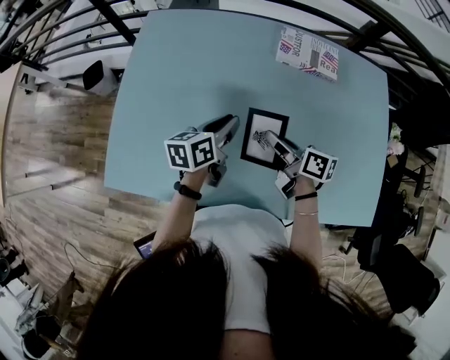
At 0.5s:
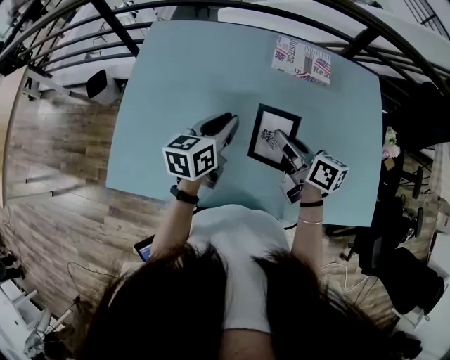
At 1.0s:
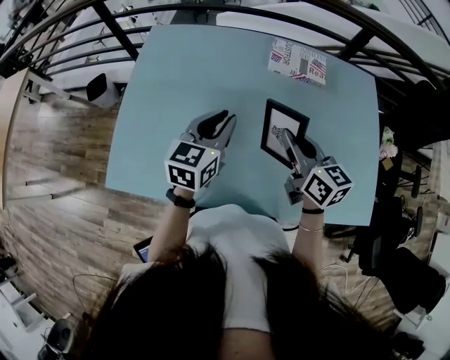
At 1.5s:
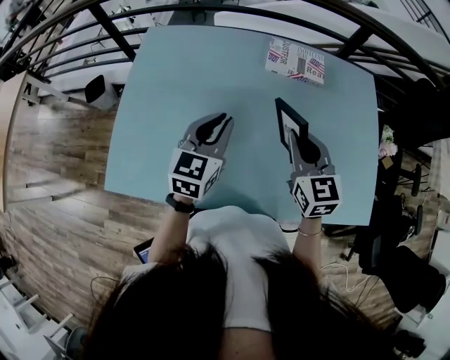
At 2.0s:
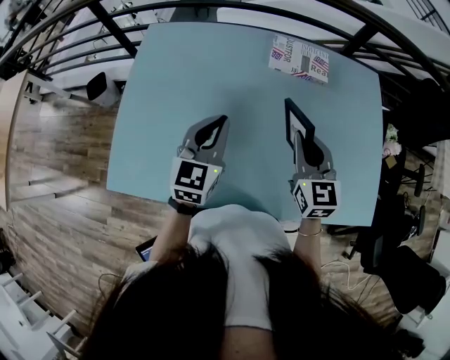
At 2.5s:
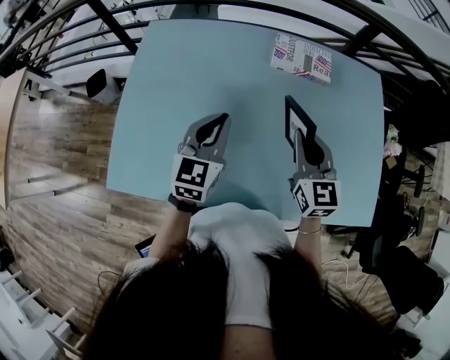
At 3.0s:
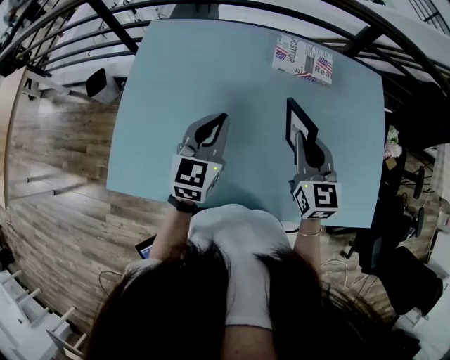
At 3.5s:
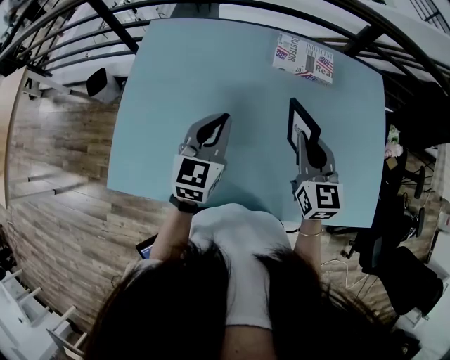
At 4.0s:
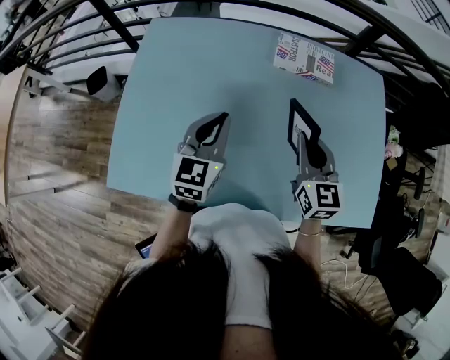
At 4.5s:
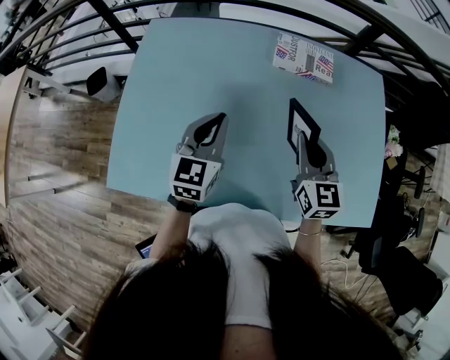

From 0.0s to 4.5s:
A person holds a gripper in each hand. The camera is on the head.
From 0.0s to 2.0s: The right gripper travels upward and to the right by about 15 cm, and rotates around the line of its fingers by some 60 degrees, counterclockwise from behind. The left gripper heads upward, covering roughly 10 cm, and rolls clockwise, seen from behind, by approximately 40 degrees.
From 2.0s to 4.5s: The grippers make only small movements.

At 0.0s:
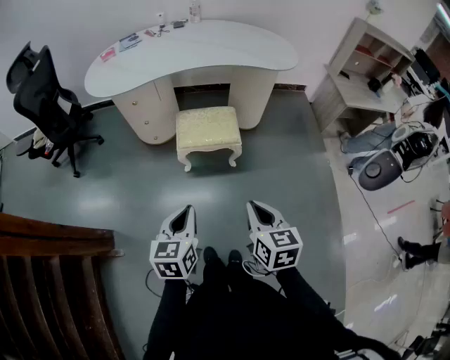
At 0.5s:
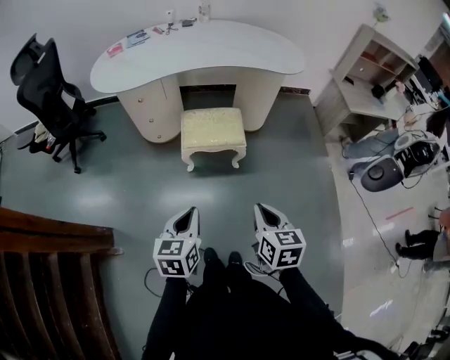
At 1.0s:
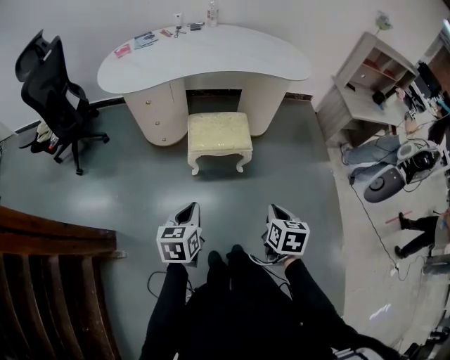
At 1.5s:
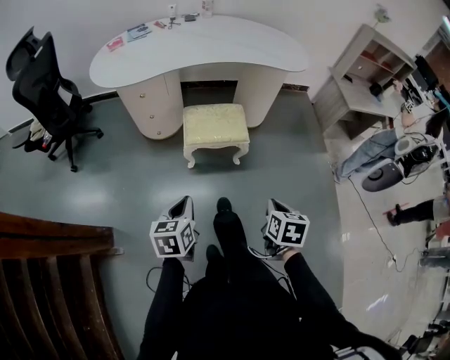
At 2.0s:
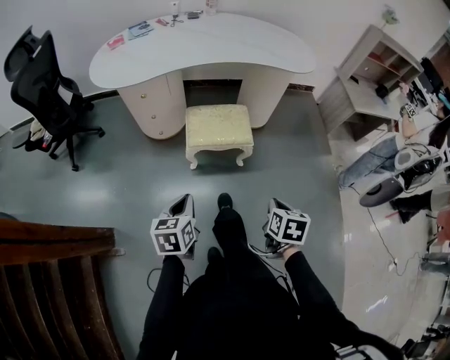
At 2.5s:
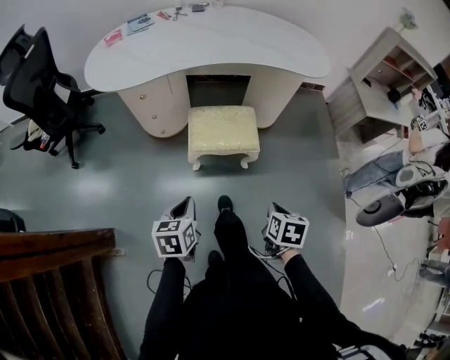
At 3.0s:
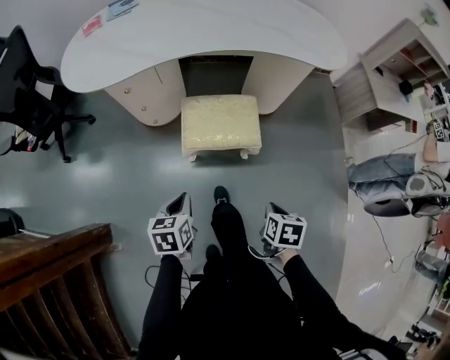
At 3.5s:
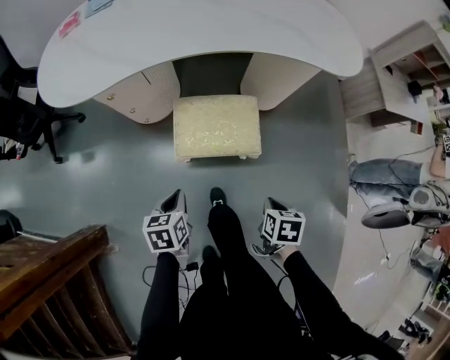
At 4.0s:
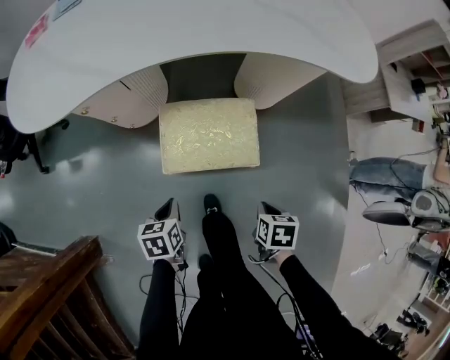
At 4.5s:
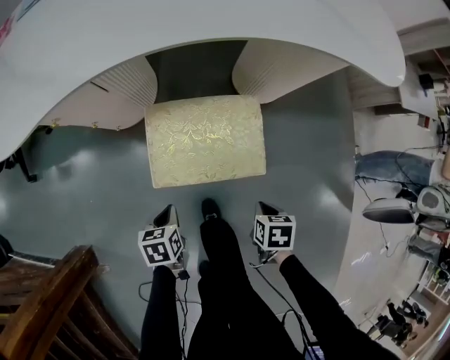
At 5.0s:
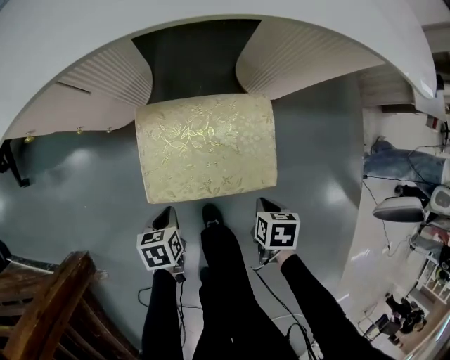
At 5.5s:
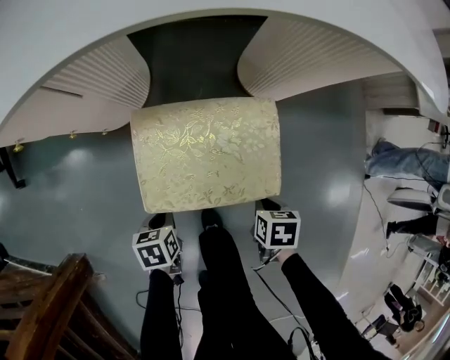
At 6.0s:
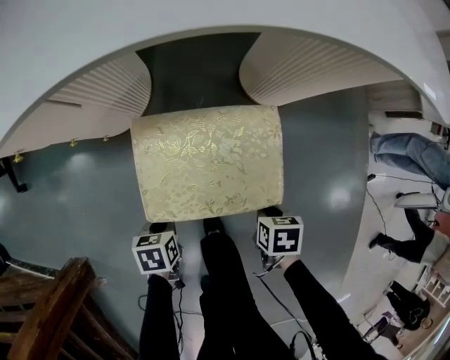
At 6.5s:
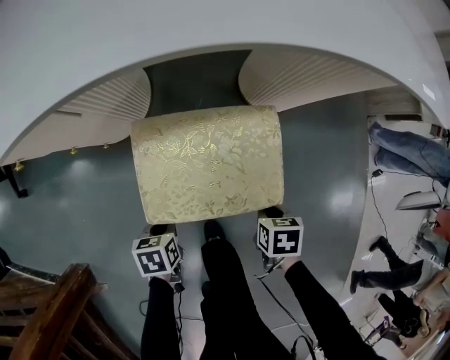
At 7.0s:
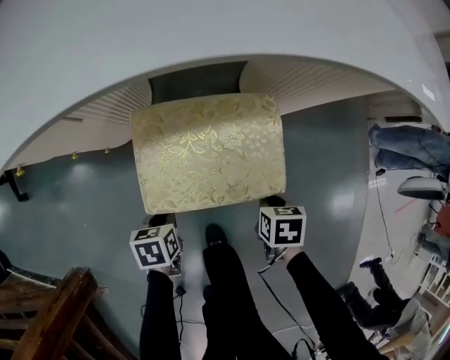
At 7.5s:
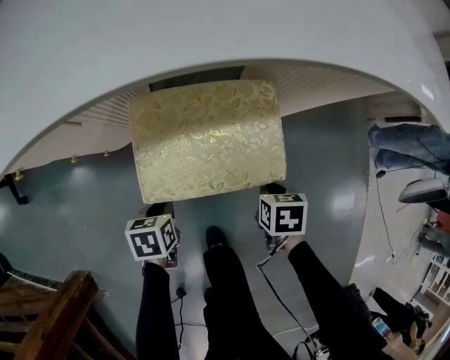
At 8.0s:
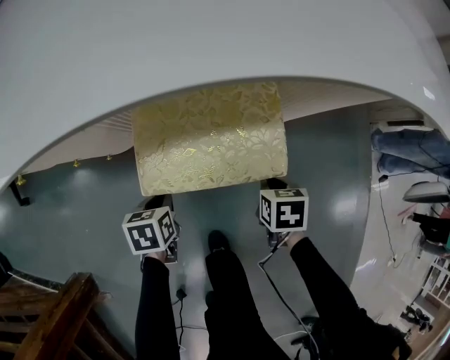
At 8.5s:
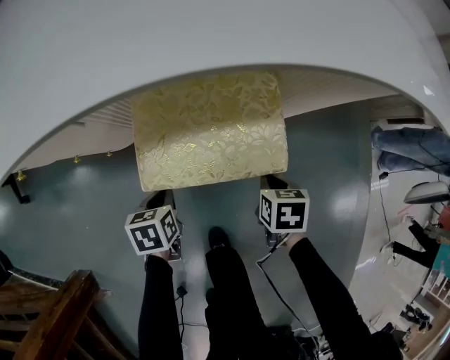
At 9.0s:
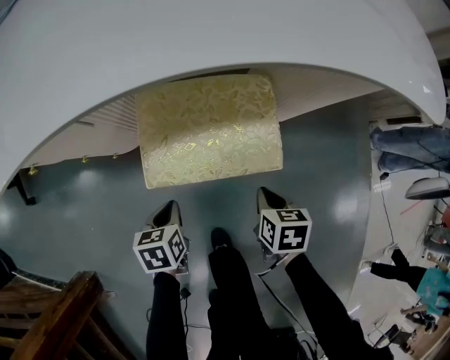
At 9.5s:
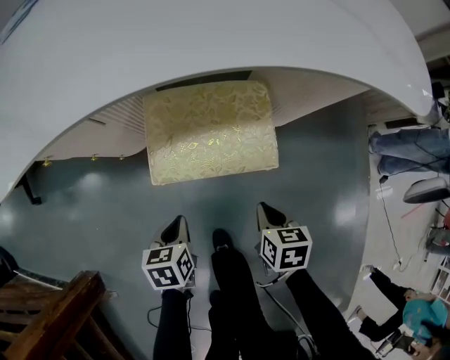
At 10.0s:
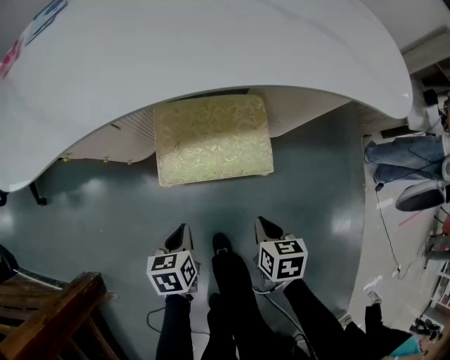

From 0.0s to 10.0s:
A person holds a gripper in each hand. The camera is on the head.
From 0.0s to 2.0s: The left gripper travels to the left, downward and forward by some 10 cm. The right gripper moves downward and forward, roughly 10 cm, and swivels about 30 degrees.
From 2.0s to 4.0s: Both grippers travel together forward and downward, some 30 cm. The right gripper swivels some 20 degrees. The left gripper turns by some 20 degrees.
From 4.0s to 6.0s: The two grippers go roughly 15 cm downward.
From 6.0s to 8.0s: The right gripper shifts by about 15 cm. The left gripper moves about 15 cm.
From 8.0s to 10.0s: The left gripper travels upward and backward by roughly 15 cm, while the right gripper goes roughly 15 cm backward and upward.

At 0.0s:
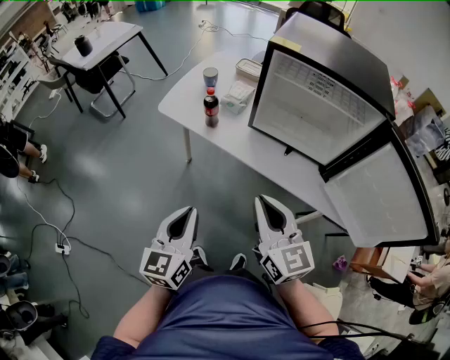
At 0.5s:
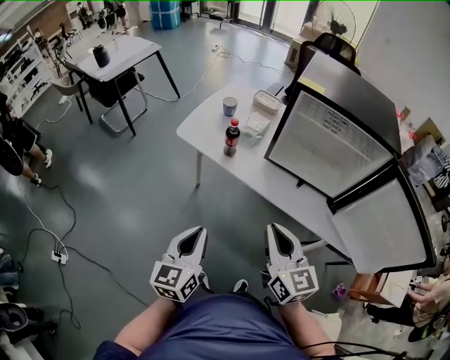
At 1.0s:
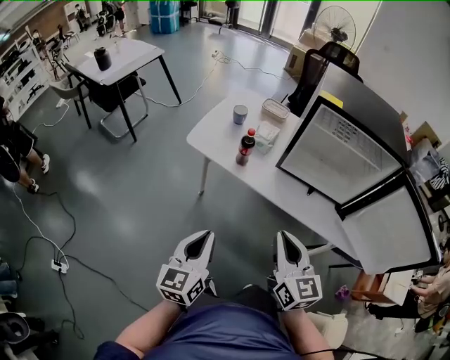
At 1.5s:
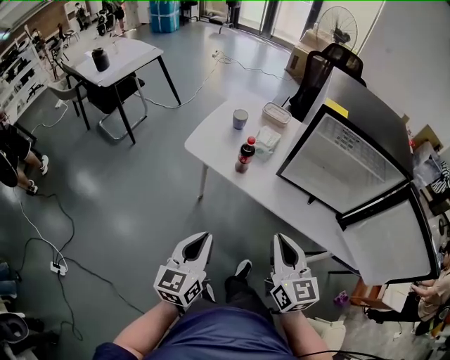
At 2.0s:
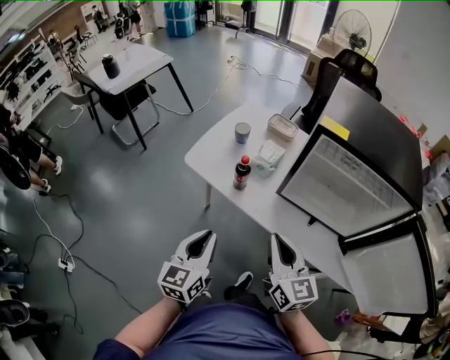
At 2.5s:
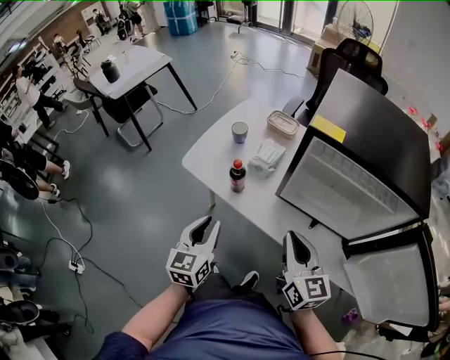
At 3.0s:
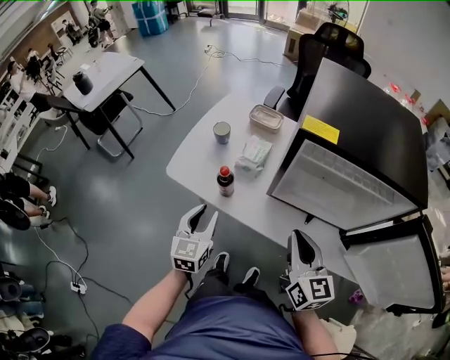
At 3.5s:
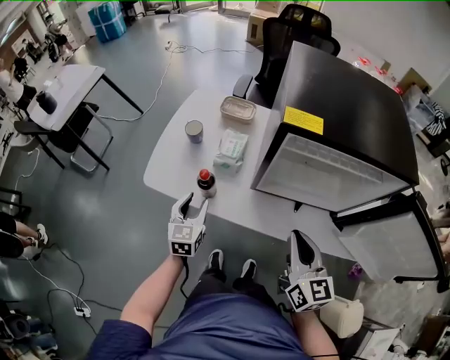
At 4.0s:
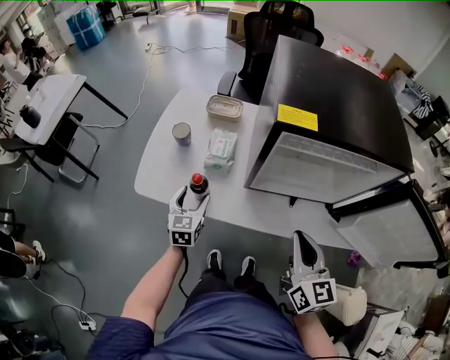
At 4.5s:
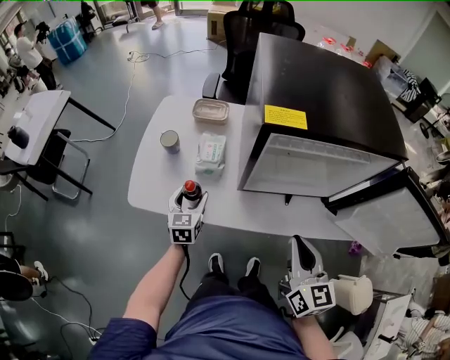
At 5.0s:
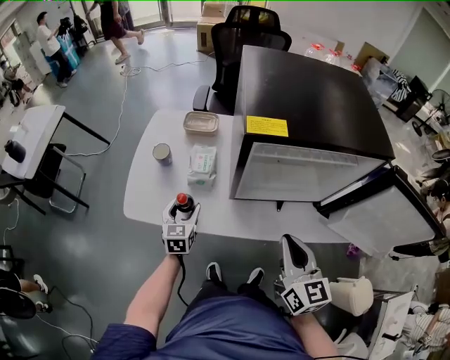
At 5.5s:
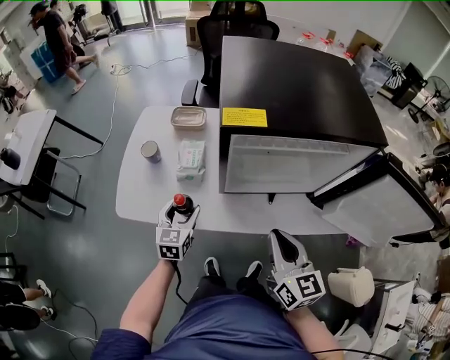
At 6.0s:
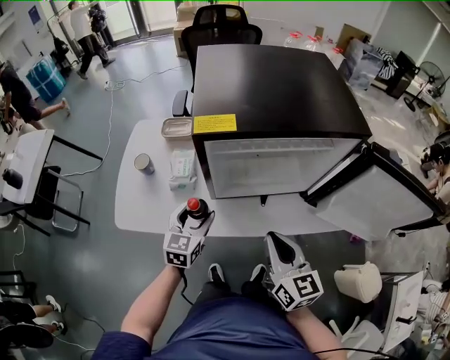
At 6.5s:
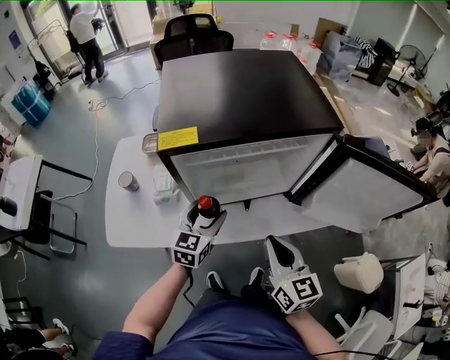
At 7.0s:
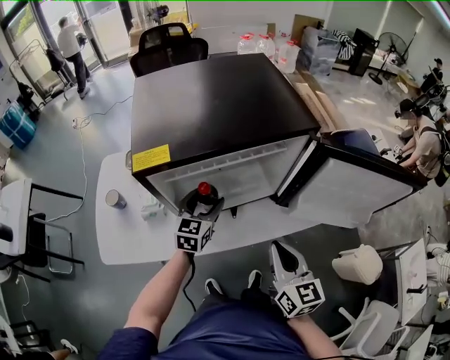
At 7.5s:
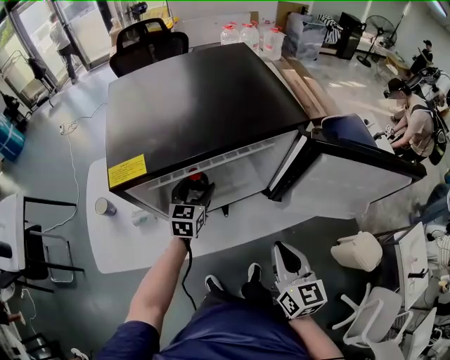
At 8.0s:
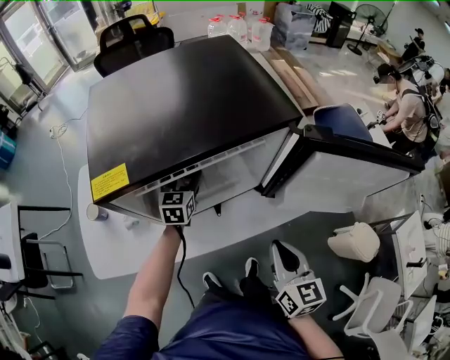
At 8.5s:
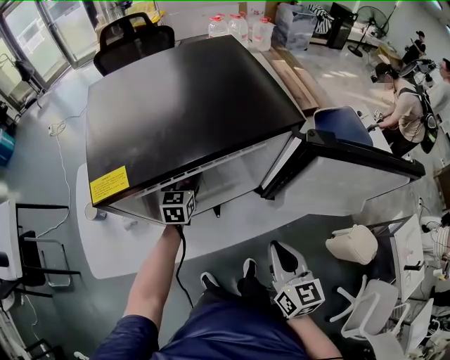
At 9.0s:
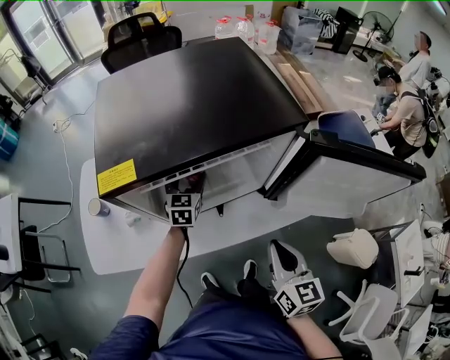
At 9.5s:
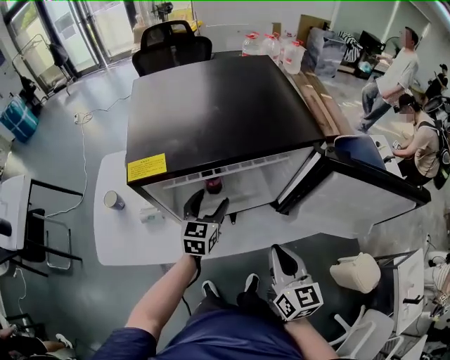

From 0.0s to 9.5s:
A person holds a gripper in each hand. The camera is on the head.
From 0.0s to 2.0s: The grippers both shift forward by about 15 cm.
From 2.0s to 4.0s: The right gripper heads to the right, covering about 10 cm, and turns by some 30 degrees; the left gripper travels forward and downward by about 30 cm, swivels approximately 20 degrees, and opens its fingers.
From 4.0s to 5.5s: The left gripper heads to the right, covering some 5 cm.
From 5.5s to 7.5s: The right gripper travels to the right by approximately 15 cm, and turns by roughly 20 degrees. The left gripper goes roughly 30 cm to the right and forward, and rotates roughly 20 degrees.
From 7.5s to 9.5s: The grippers make only small movements.

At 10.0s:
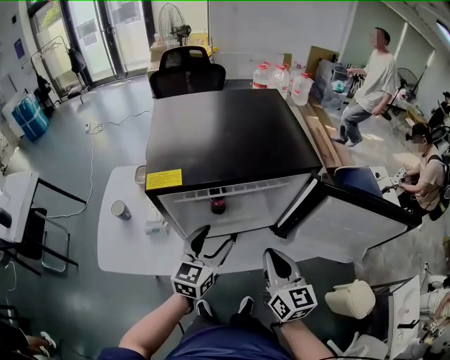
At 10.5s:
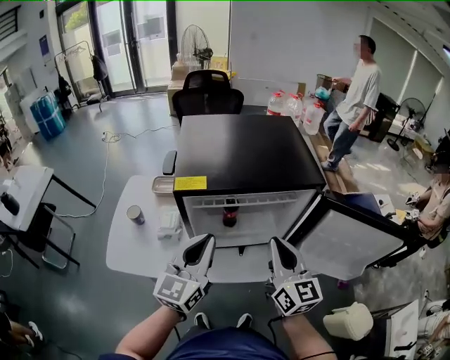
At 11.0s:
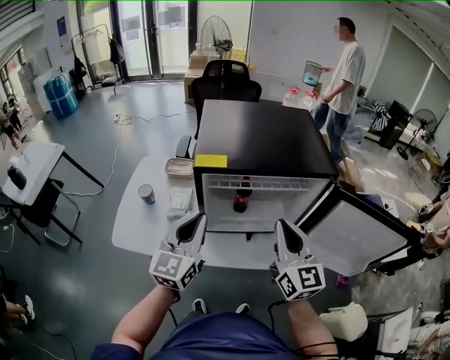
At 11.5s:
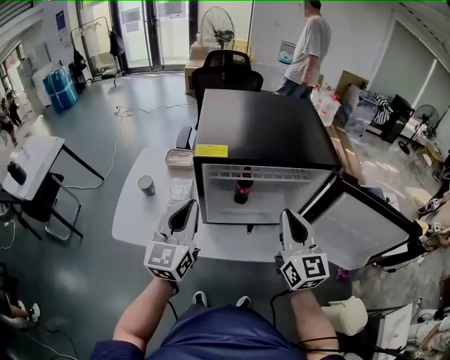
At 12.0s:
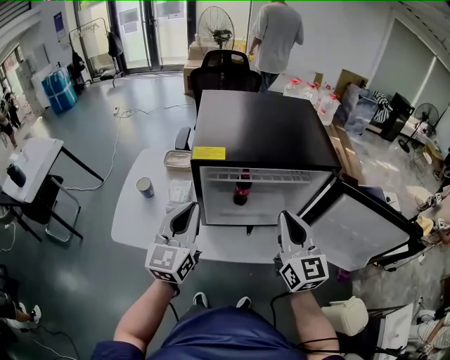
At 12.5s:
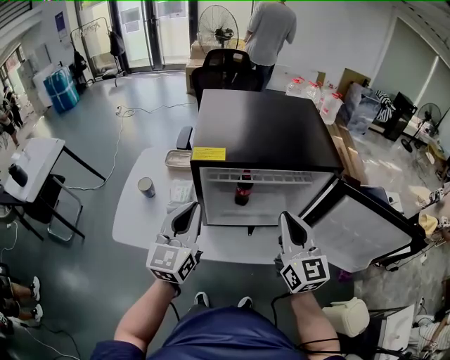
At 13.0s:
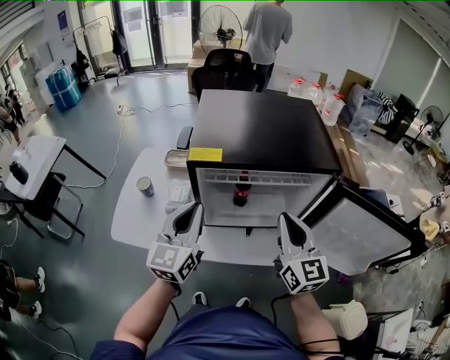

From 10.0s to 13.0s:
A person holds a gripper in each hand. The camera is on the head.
From 10.0s to 11.5s: The right gripper goes about 10 cm upward; the left gripper shifts roughly 20 cm to the left and upward, swivels roughly 30 degrees, and closes.
From 11.5s to 13.0s: There are only small adjustments of the grippers.
